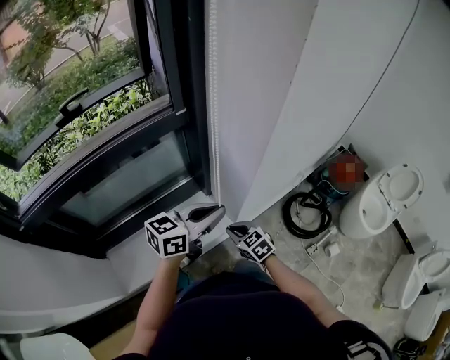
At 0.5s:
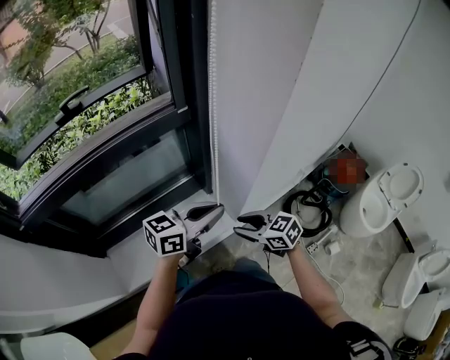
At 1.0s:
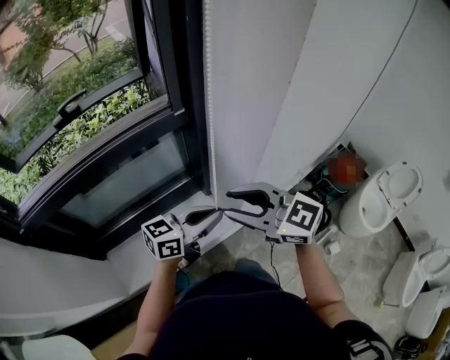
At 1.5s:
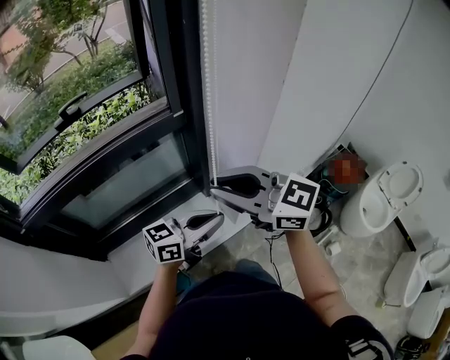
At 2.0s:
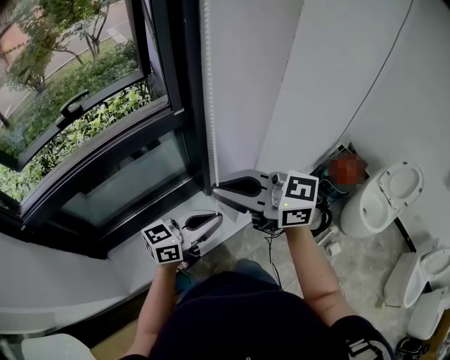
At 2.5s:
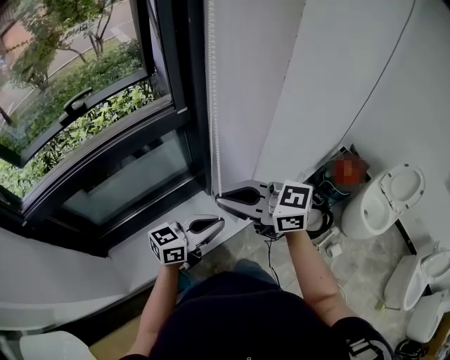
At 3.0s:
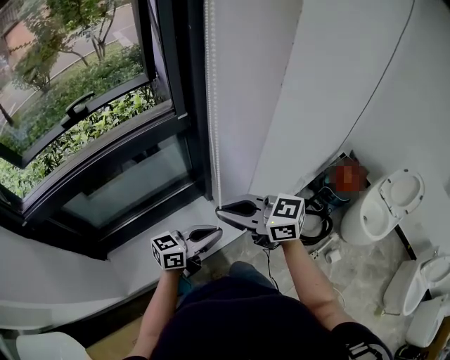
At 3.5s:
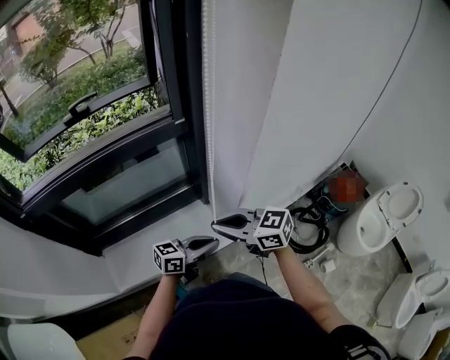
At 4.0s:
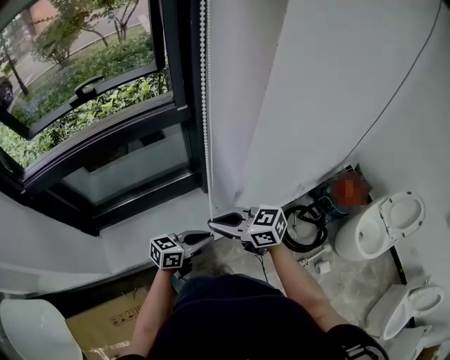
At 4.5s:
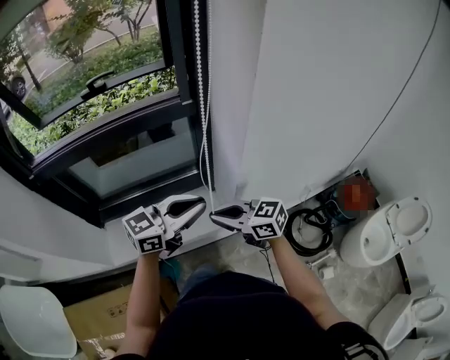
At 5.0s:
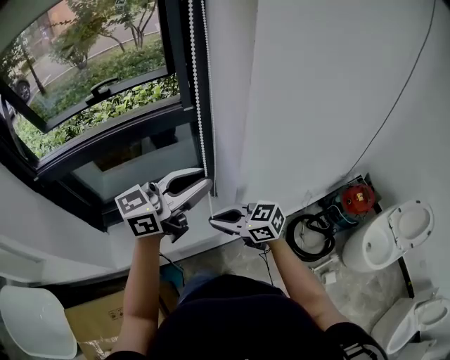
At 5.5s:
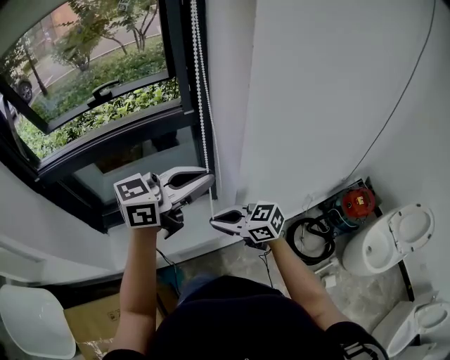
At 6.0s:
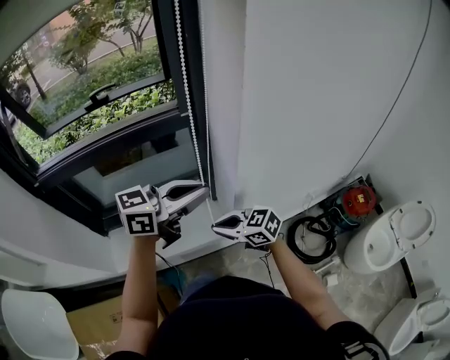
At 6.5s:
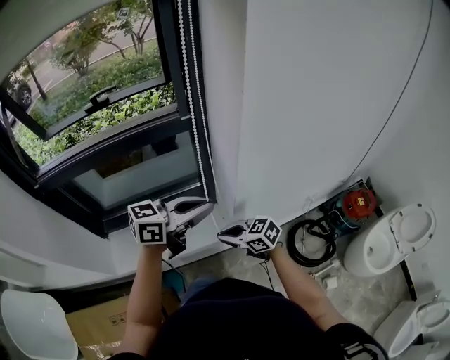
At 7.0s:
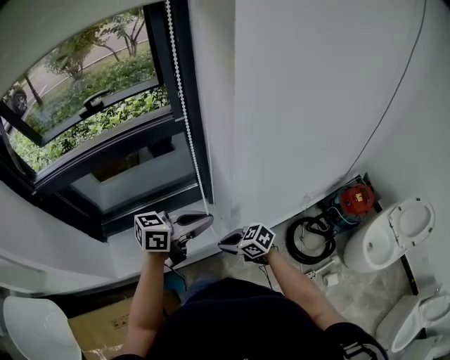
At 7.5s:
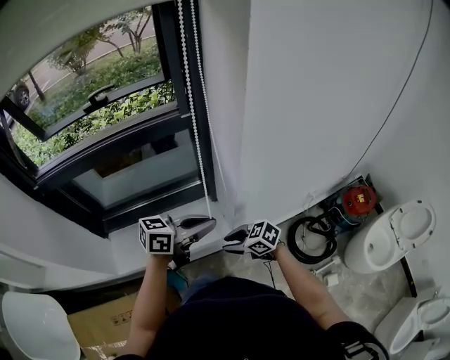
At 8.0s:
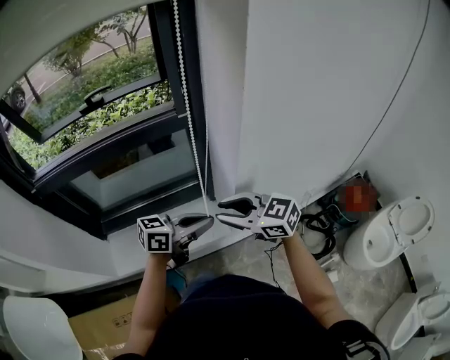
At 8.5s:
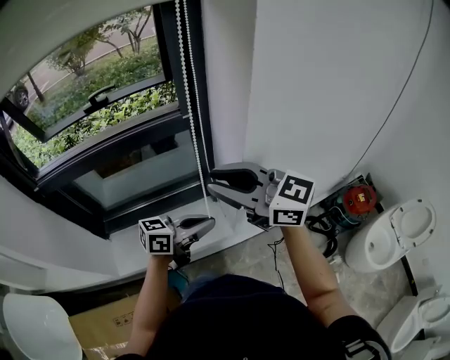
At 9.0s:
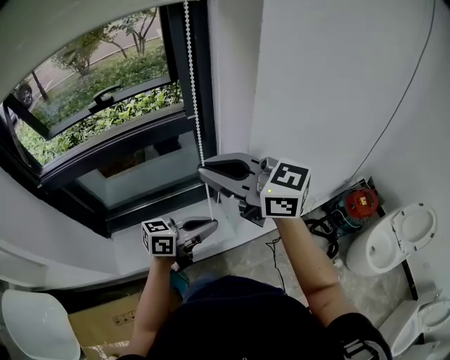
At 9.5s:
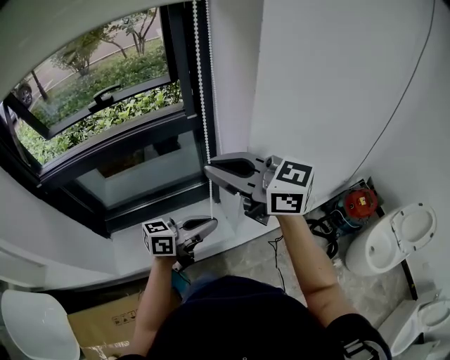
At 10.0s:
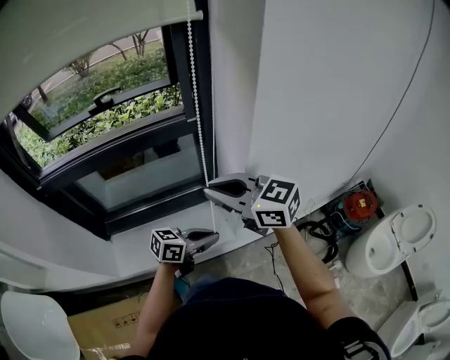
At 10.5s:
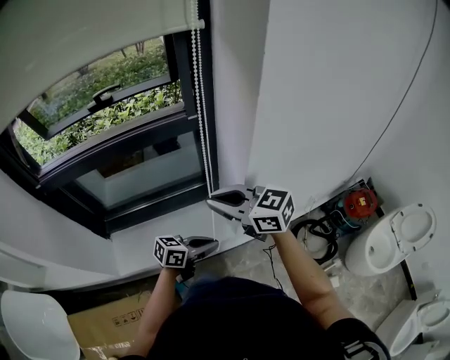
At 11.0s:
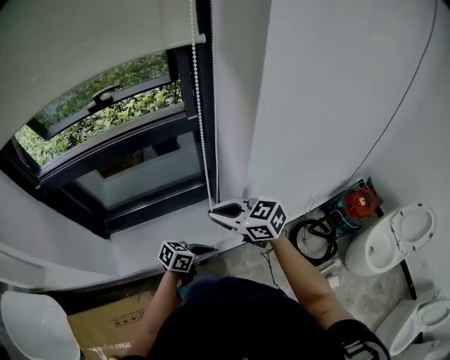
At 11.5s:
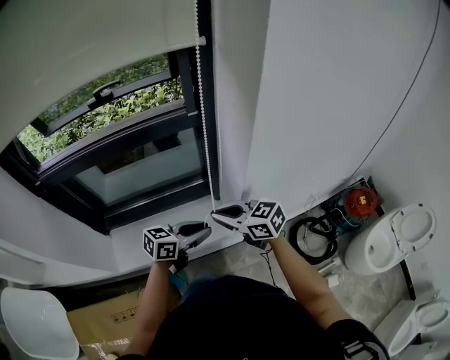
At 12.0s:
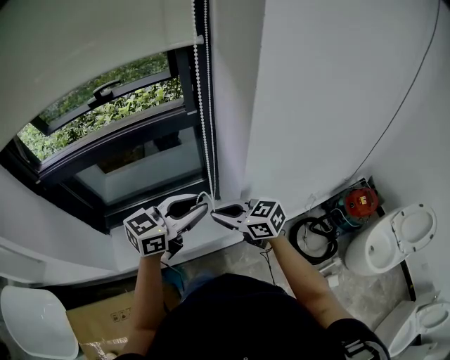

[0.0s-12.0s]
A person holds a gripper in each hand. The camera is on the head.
0.0s to 2.0s: The right gripper is displaced upward by roughly 35 cm, tips its fingers upward by approximately 40 degrees, and opens, then closes again.
2.0s to 4.0s: Both grippers move downward, some 15 cm. The right gripper turns by roughly 20 degrees.
4.0s to 6.0s: The left gripper goes approximately 25 cm upward.
6.0s to 8.0s: The right gripper travels upward by some 10 cm, and opens up, while the left gripper heads downward, covering some 15 cm.
8.0s to 10.0s: The left gripper goes approximately 5 cm downward, while the right gripper moves upward, about 10 cm, and closes its fingers.
10.0s to 12.0s: The right gripper heads downward, covering approximately 15 cm. The left gripper goes roughly 15 cm upward, and turns by about 30 degrees.

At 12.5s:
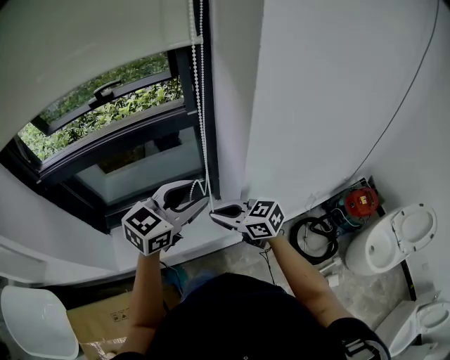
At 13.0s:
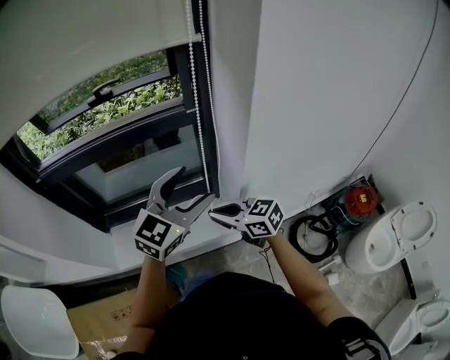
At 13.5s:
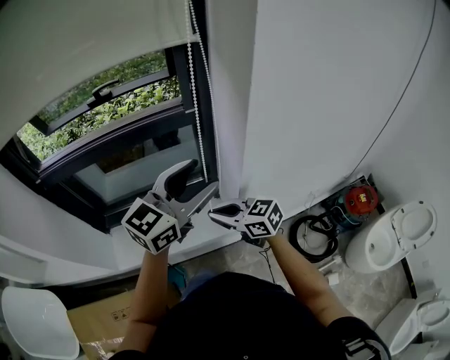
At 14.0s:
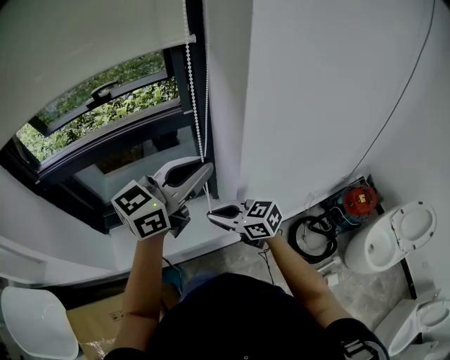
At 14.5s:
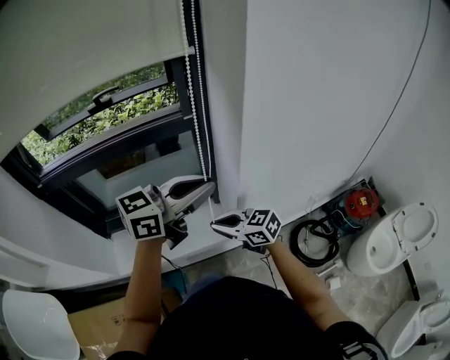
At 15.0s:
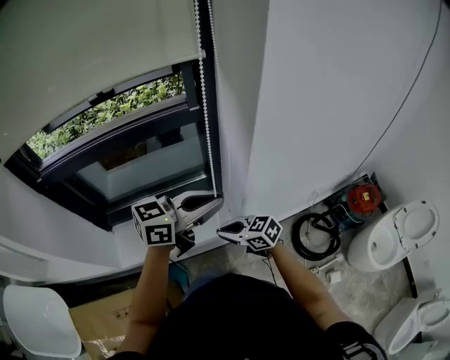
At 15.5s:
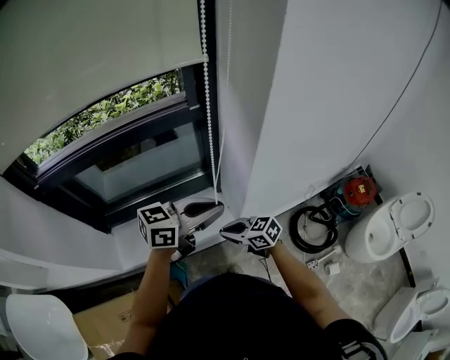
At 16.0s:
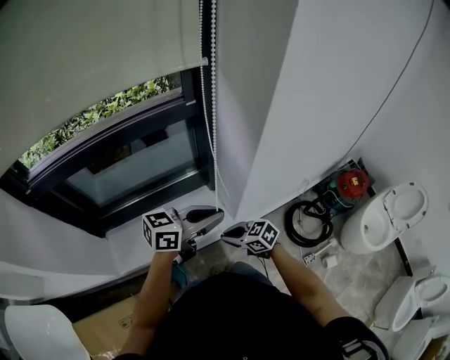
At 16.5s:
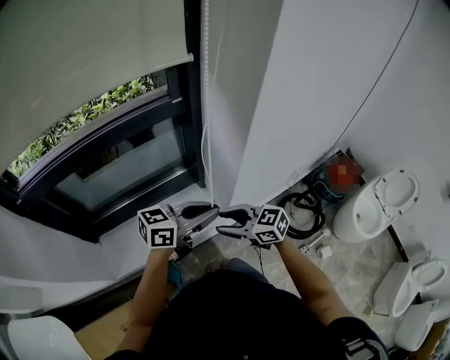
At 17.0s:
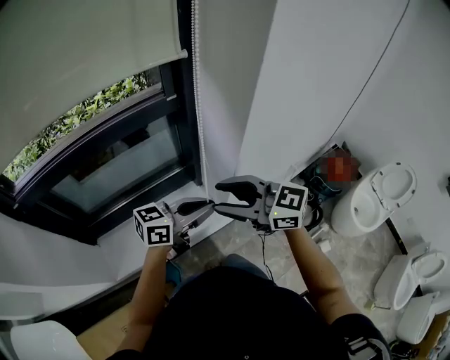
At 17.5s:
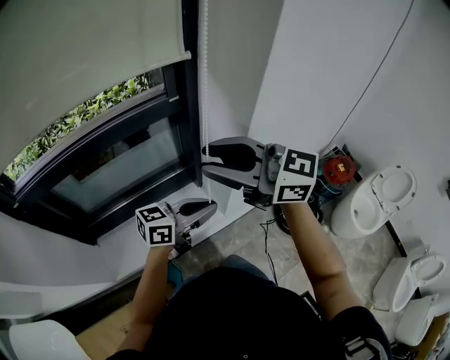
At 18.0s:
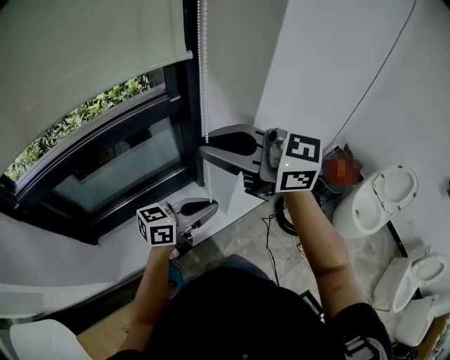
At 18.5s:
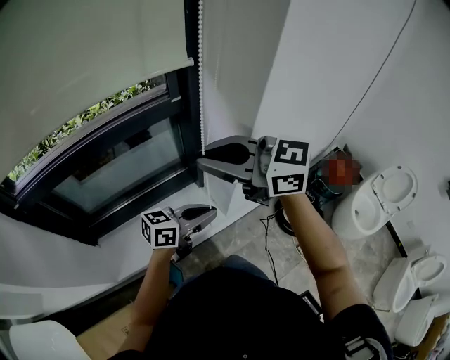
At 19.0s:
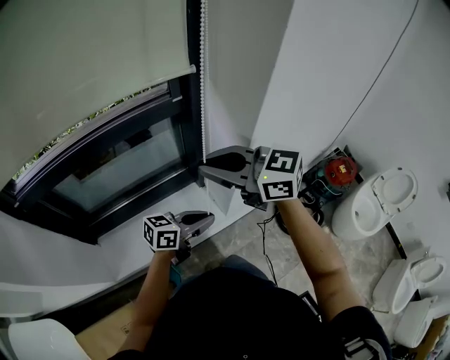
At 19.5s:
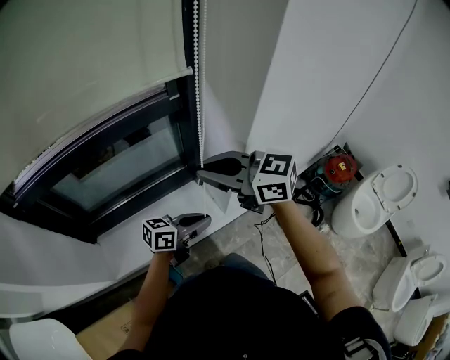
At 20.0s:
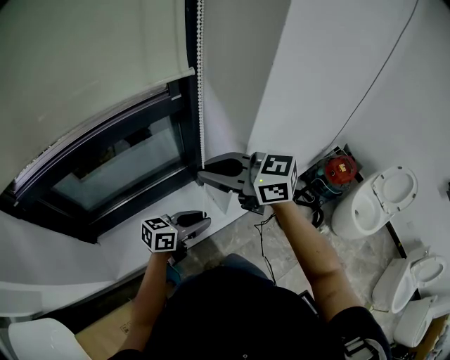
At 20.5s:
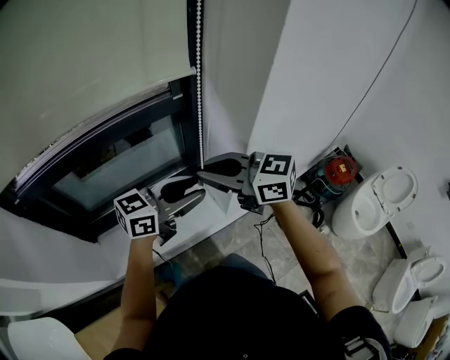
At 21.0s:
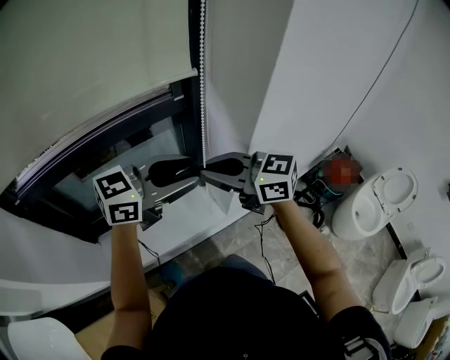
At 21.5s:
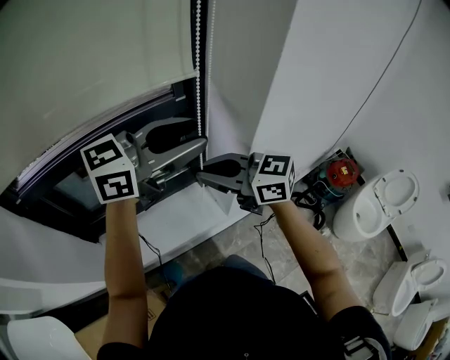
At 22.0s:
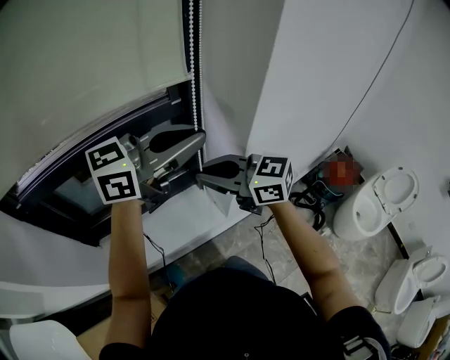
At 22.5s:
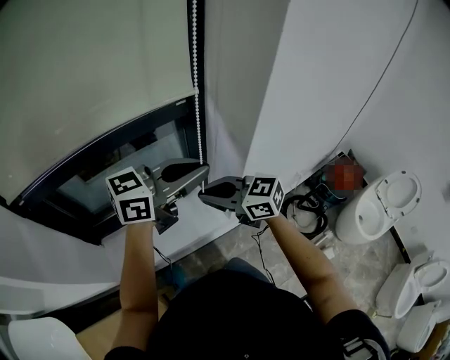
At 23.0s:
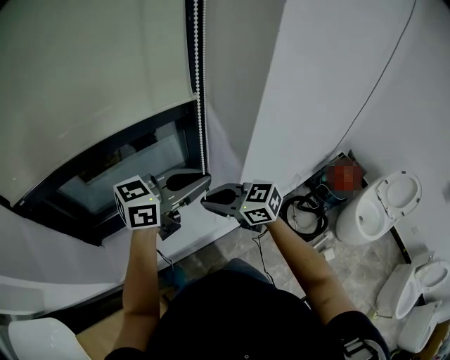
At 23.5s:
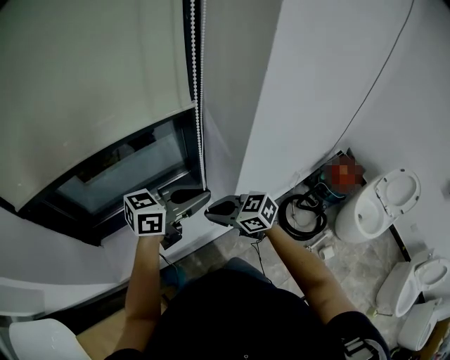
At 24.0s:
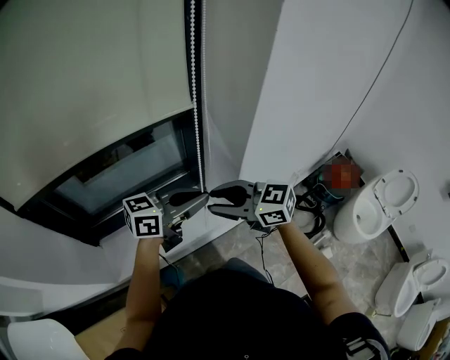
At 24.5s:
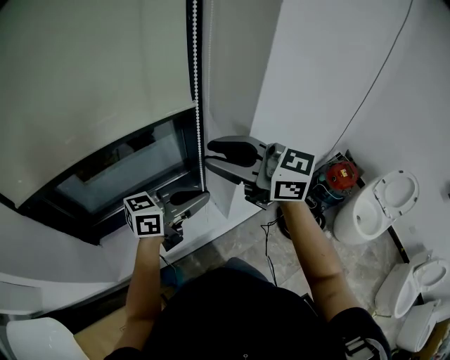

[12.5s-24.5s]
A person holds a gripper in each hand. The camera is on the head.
12.5s to 14.5s: The left gripper travels upward by approximately 5 cm, turns by roughly 20 degrees, and closes.
14.5s to 16.5s: The right gripper moves approximately 15 cm downward and comes back, and opens its fingers; the left gripper goes roughly 15 cm downward, and turns by some 20 degrees.
16.5s to 18.5s: The right gripper goes approximately 25 cm upward, swivels about 20 degrees, and closes.
18.5s to 20.5s: The left gripper travels upward by approximately 10 cm, and opens up; the right gripper moves downward, some 5 cm.
20.5s to 22.5s: The left gripper goes approximately 10 cm upward, and closes; the right gripper is displaced downward by roughly 10 cm.
22.5s to 24.5s: The right gripper shifts about 15 cm upward, and opens its fingers; the left gripper travels downward by approximately 10 cm.

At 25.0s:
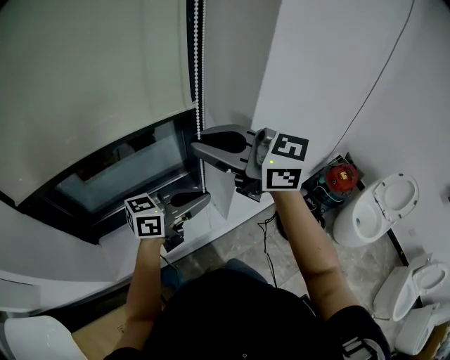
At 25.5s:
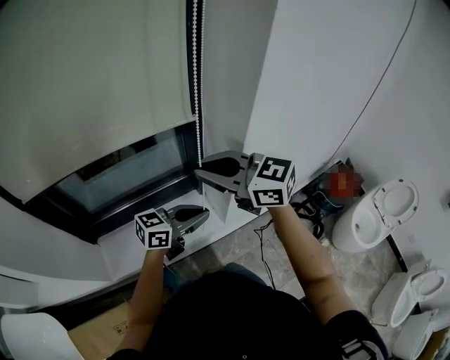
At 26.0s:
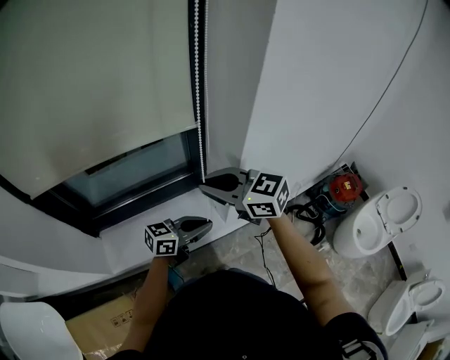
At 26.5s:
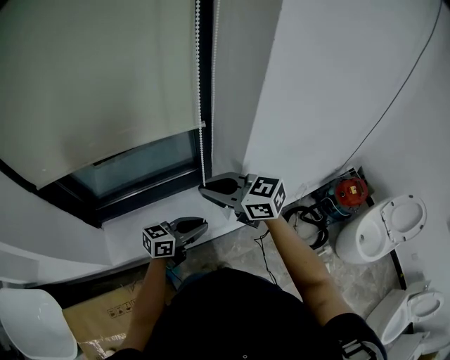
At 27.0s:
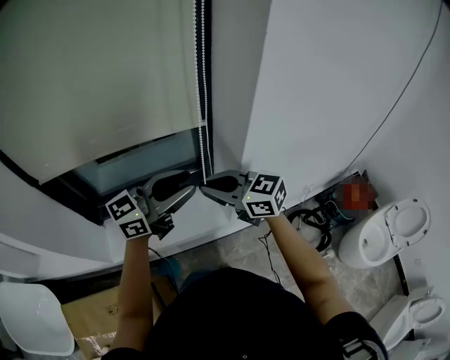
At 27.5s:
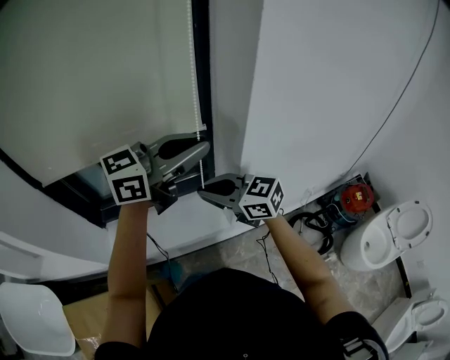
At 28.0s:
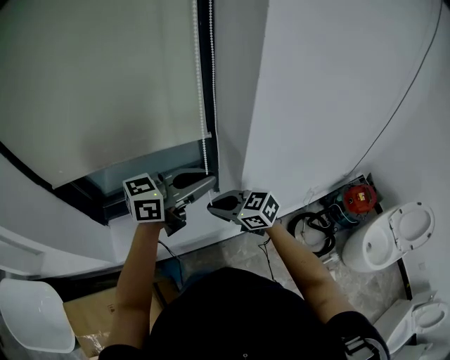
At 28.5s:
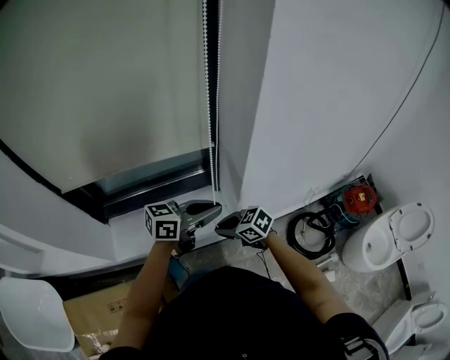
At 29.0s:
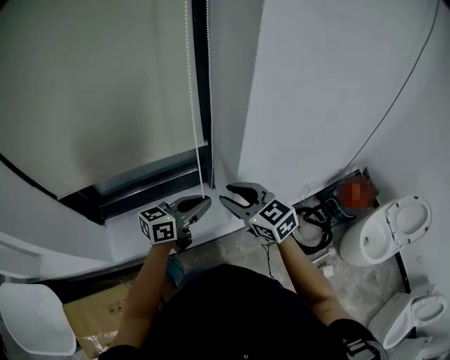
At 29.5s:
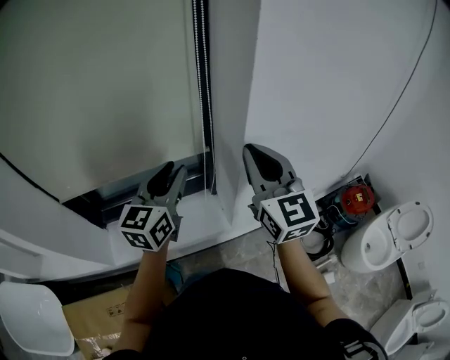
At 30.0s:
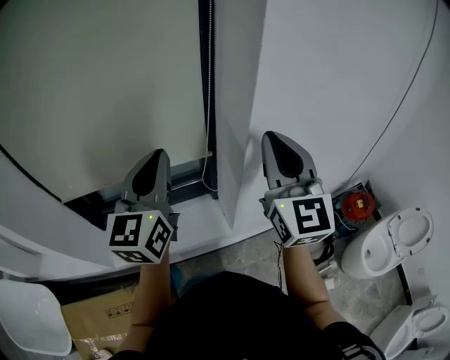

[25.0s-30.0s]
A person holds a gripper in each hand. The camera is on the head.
25.0s to 27.5s: The right gripper shifts approximately 15 cm downward. Meanwhile the left gripper goes about 15 cm upward, changes its angle by roughly 20 degrees, and opens, then closes again.
27.5s to 30.0s: The right gripper heads upward, covering about 20 cm, rotates roughly 60 degrees, and opens, then closes again, while the left gripper goes downward and returns, approximately 25 cm each way, swivels approximately 60 degrees, and opens, then closes once more.
